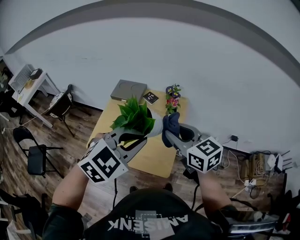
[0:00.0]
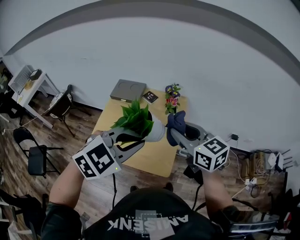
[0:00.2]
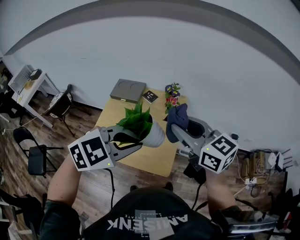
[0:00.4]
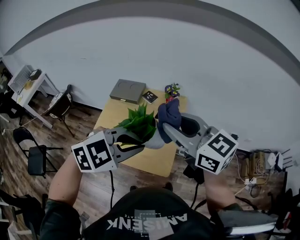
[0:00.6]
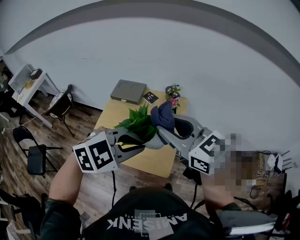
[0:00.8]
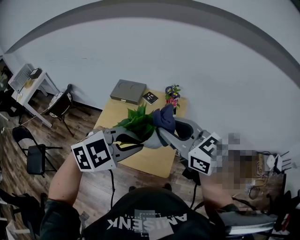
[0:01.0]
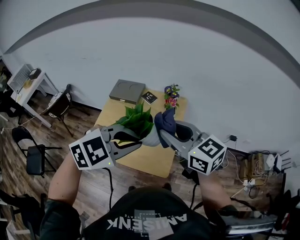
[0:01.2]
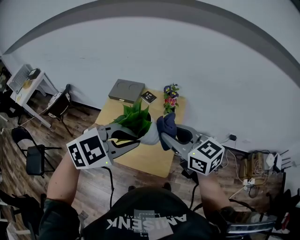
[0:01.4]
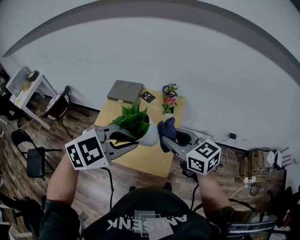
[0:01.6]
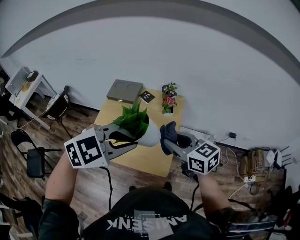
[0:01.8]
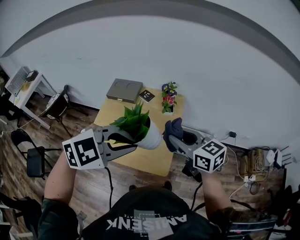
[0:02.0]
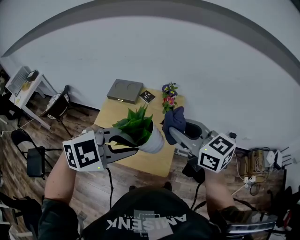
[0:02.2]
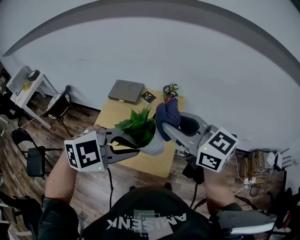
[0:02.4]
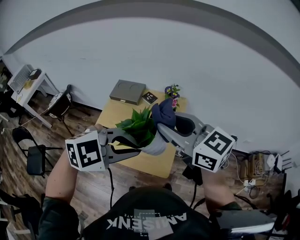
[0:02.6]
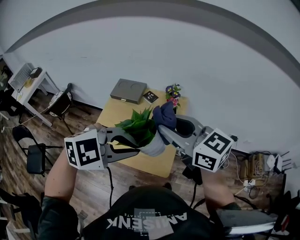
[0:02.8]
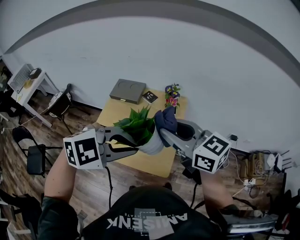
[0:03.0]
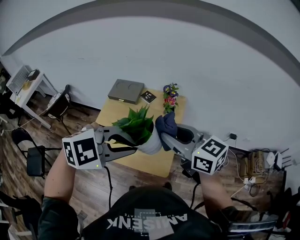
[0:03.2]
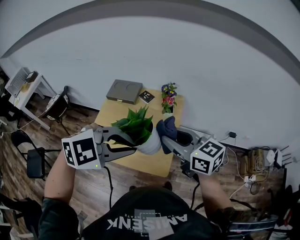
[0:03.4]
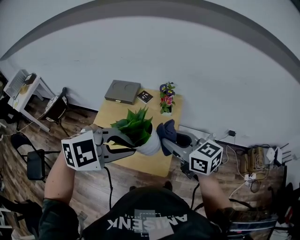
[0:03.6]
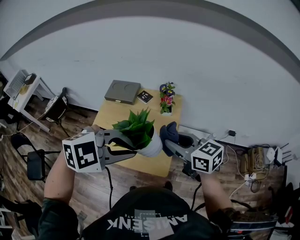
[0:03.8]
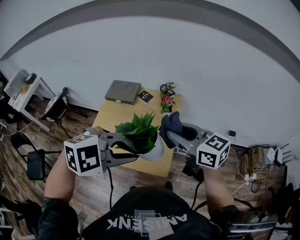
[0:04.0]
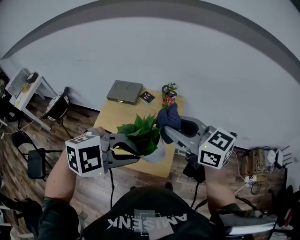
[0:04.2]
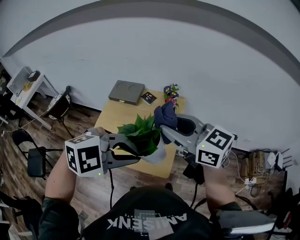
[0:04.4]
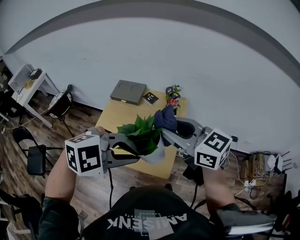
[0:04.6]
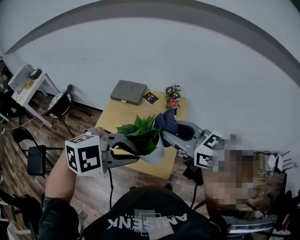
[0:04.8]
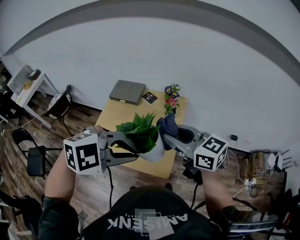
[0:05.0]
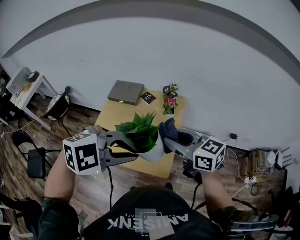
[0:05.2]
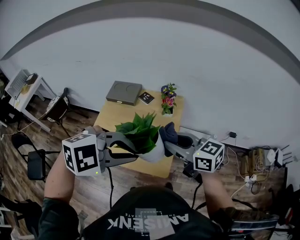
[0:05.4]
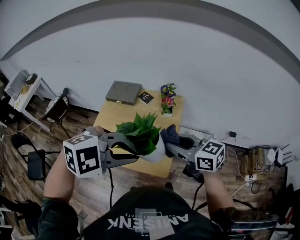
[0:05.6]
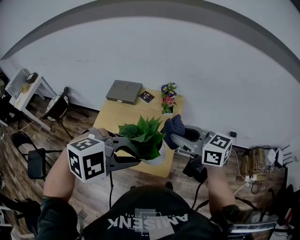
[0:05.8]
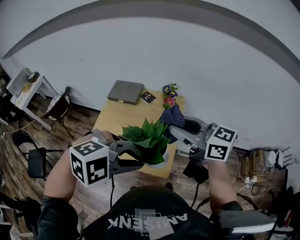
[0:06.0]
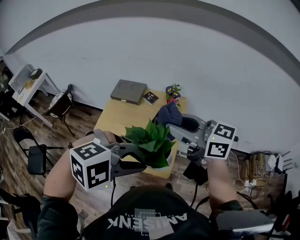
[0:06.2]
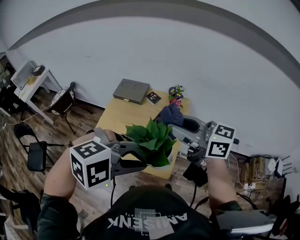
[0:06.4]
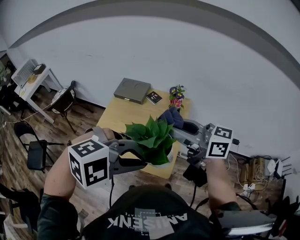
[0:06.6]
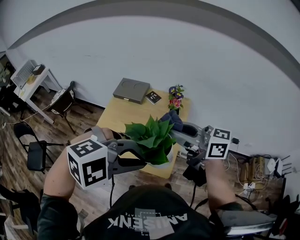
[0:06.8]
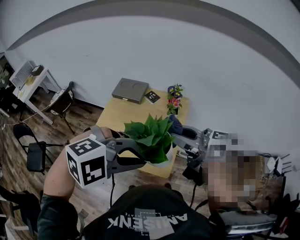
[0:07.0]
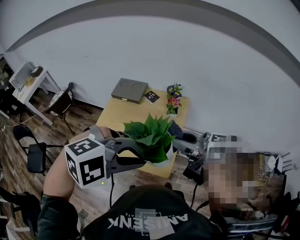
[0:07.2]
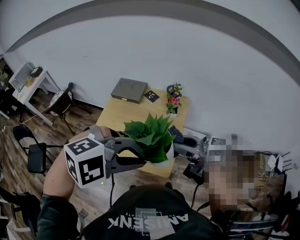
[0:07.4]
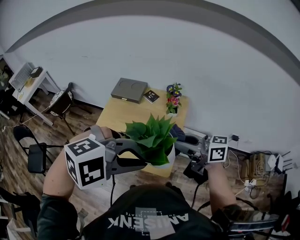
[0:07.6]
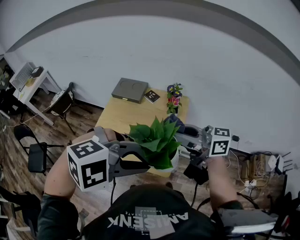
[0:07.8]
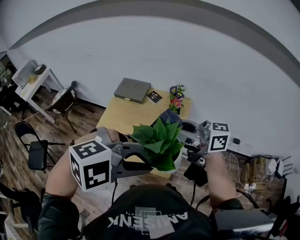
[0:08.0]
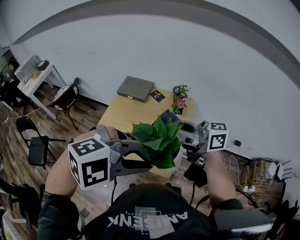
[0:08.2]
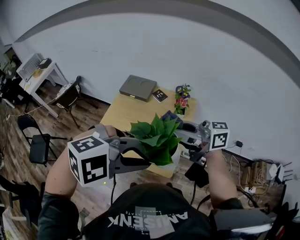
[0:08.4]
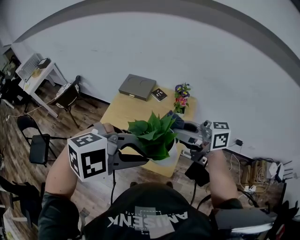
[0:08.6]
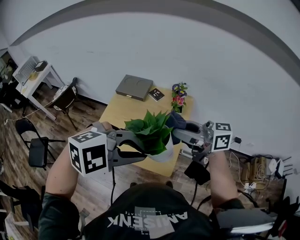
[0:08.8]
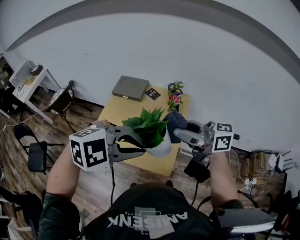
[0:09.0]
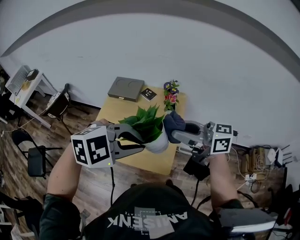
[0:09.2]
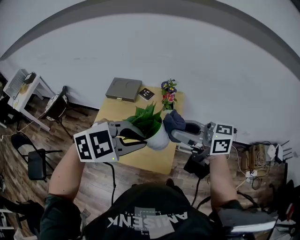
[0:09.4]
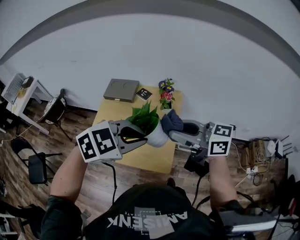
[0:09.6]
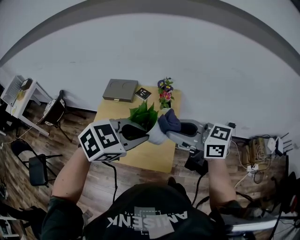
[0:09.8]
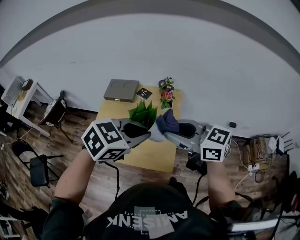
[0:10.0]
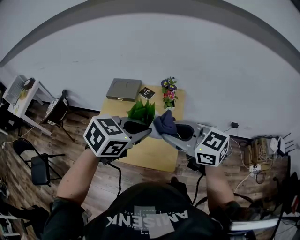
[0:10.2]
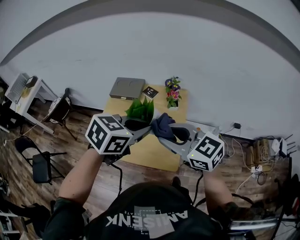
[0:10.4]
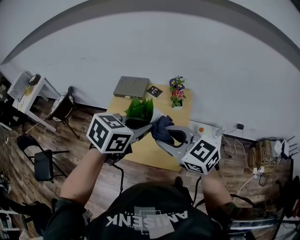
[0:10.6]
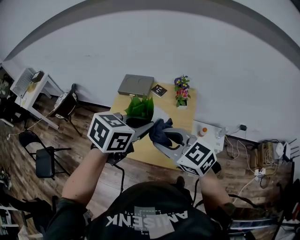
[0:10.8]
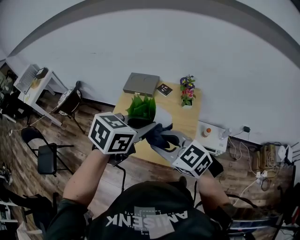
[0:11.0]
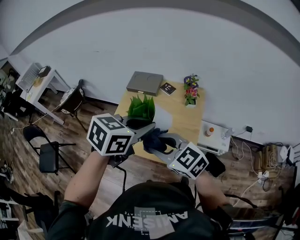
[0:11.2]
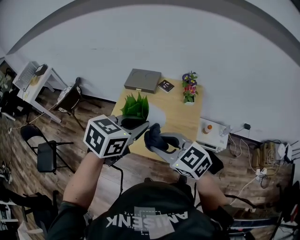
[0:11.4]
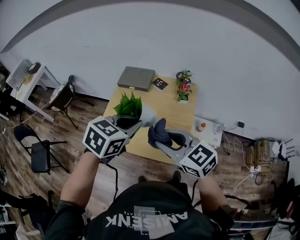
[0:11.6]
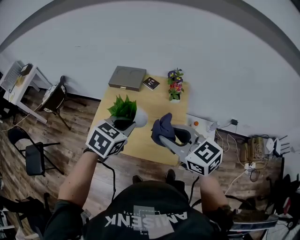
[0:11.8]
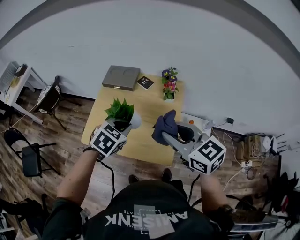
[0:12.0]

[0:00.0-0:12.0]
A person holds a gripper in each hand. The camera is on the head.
0:00.0 to 0:01.6: The right gripper moves roughly 10 cm upward and comes back.
0:01.6 to 0:03.0: The right gripper moves upward, roughly 10 cm.
0:03.0 to 0:04.4: The right gripper goes downward and returns, roughly 10 cm each way.
0:04.4 to 0:06.0: The right gripper reaches roughly 10 cm downward, then returns.
0:06.0 to 0:07.6: The right gripper is displaced downward by roughly 10 cm, and rotates roughly 20 degrees.
0:07.6 to 0:09.0: The right gripper moves upward, some 5 cm.
0:09.0 to 0:10.4: The right gripper ends up some 5 cm from where it was, and turns by roughly 40 degrees. Meanwhile the left gripper changes place by approximately 10 cm, and rolls counterclockwise, seen from behind, by approximately 50 degrees.
0:10.4 to 0:12.0: The left gripper heads downward and to the left, covering some 15 cm, and turns by about 20 degrees. Meanwhile the right gripper reaches about 10 cm to the left, then returns.

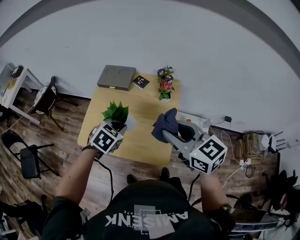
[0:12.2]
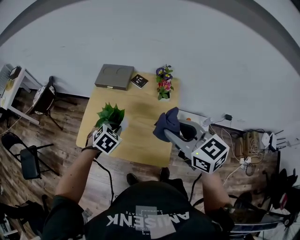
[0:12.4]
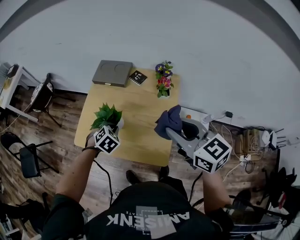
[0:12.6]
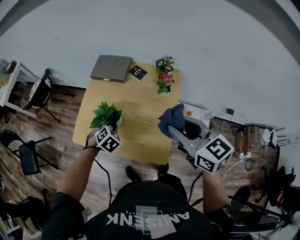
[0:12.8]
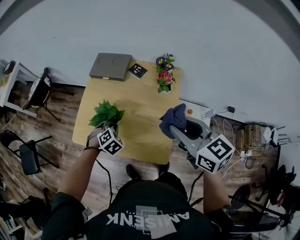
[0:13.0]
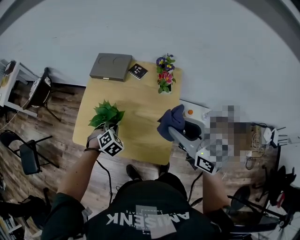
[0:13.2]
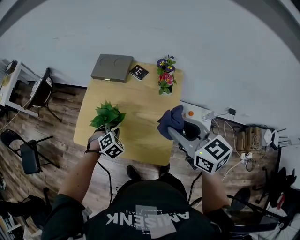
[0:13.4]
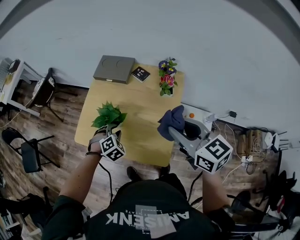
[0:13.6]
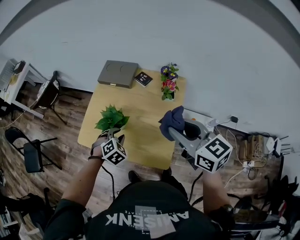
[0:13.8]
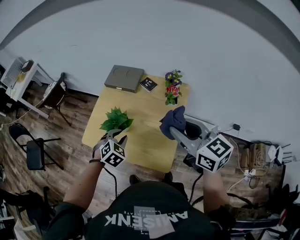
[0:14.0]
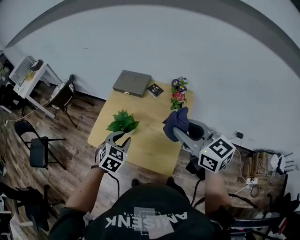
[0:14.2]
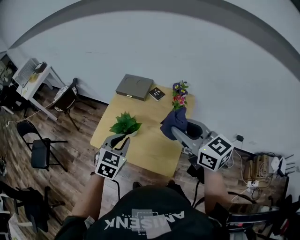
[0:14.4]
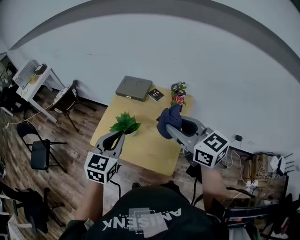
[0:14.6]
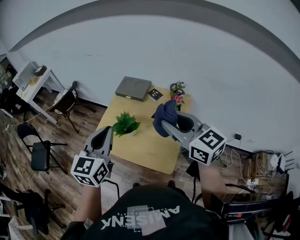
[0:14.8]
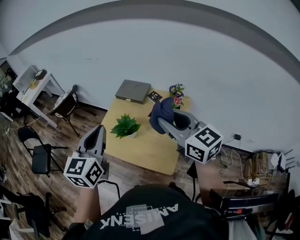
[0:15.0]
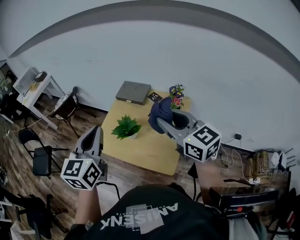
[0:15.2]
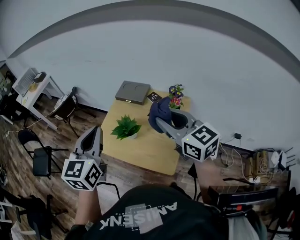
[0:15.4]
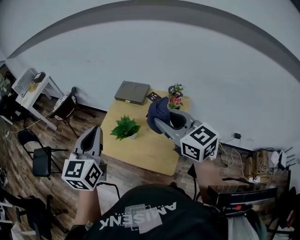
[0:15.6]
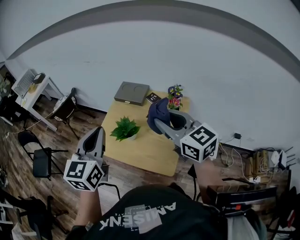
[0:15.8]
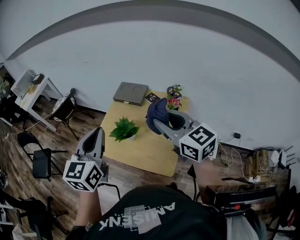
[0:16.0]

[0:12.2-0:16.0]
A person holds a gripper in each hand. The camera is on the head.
0:12.2 to 0:13.4: The right gripper ends up about 10 cm from where it was. The left gripper is displaced downward by some 15 cm, and turns by roughly 30 degrees.
0:13.4 to 0:14.8: The left gripper is displaced upward by approximately 35 cm, and angles its fingers upward, by roughly 50 degrees. Meanwhile the right gripper is displaced upward and to the left by about 15 cm.
0:14.8 to 0:16.0: The grippers stay close to where they were, moving slightly.

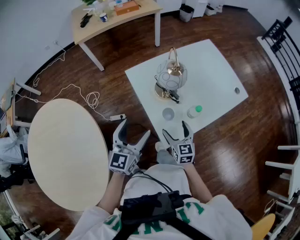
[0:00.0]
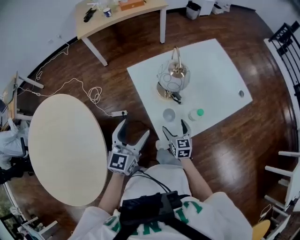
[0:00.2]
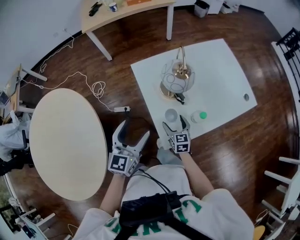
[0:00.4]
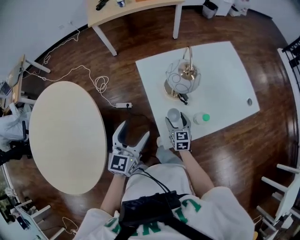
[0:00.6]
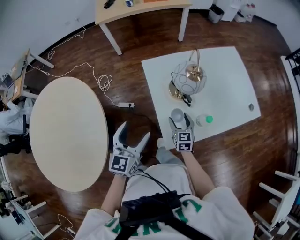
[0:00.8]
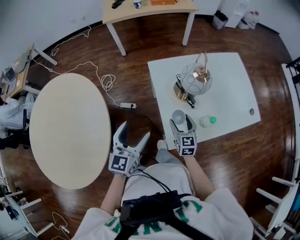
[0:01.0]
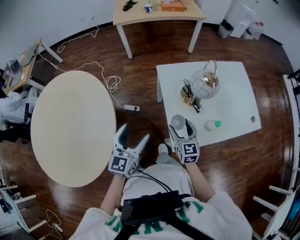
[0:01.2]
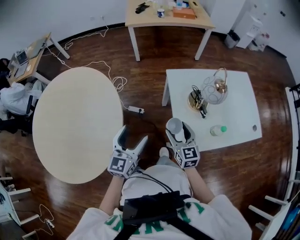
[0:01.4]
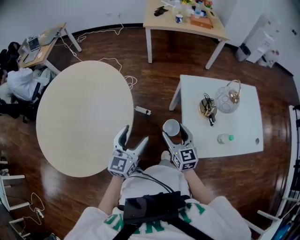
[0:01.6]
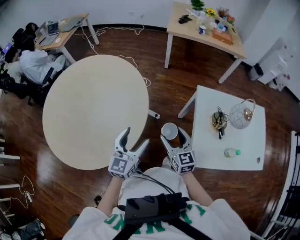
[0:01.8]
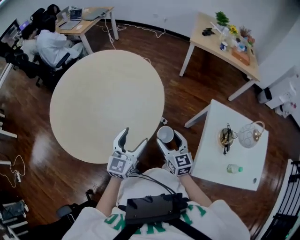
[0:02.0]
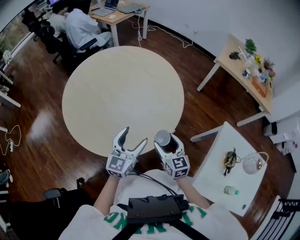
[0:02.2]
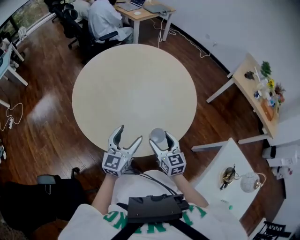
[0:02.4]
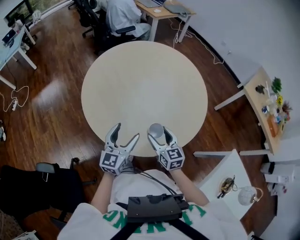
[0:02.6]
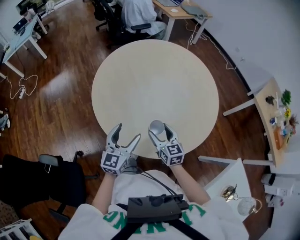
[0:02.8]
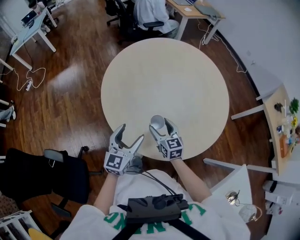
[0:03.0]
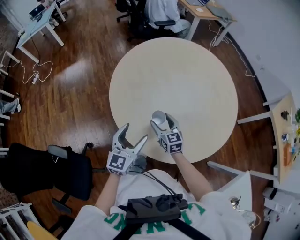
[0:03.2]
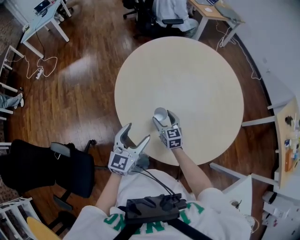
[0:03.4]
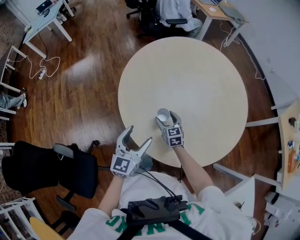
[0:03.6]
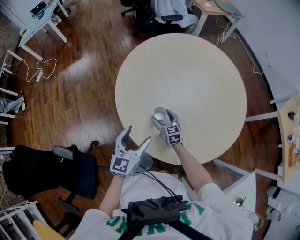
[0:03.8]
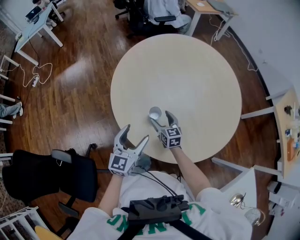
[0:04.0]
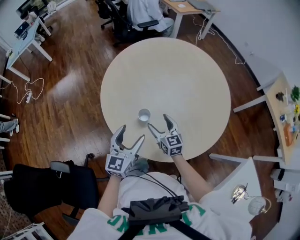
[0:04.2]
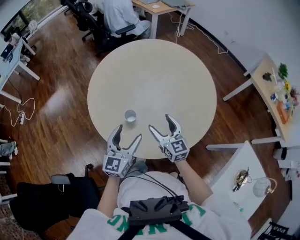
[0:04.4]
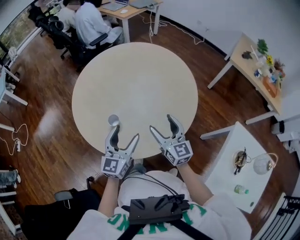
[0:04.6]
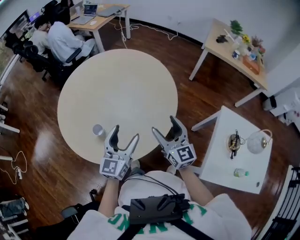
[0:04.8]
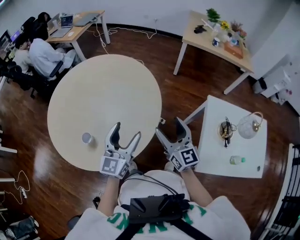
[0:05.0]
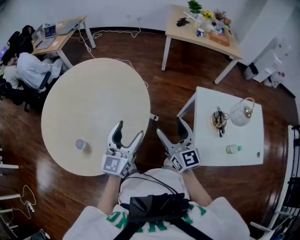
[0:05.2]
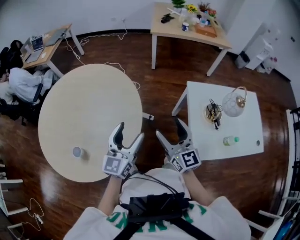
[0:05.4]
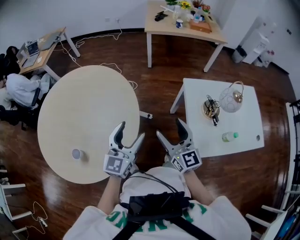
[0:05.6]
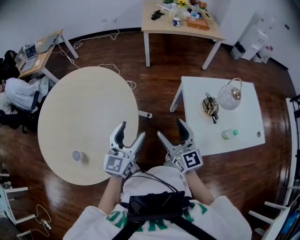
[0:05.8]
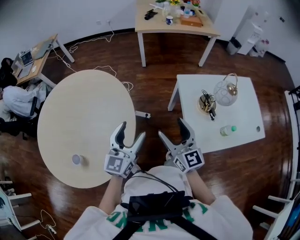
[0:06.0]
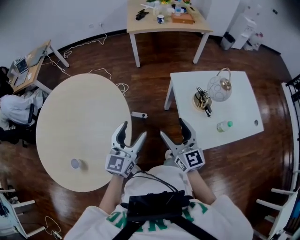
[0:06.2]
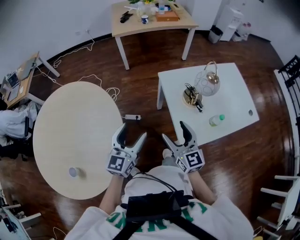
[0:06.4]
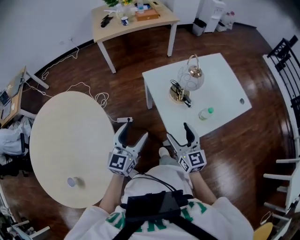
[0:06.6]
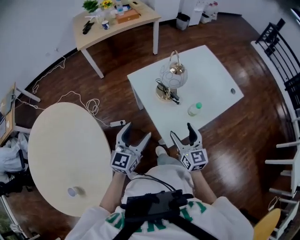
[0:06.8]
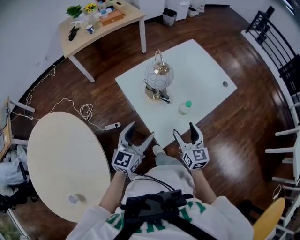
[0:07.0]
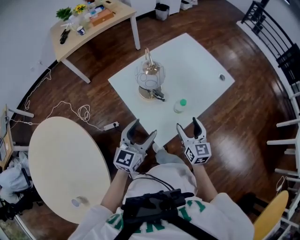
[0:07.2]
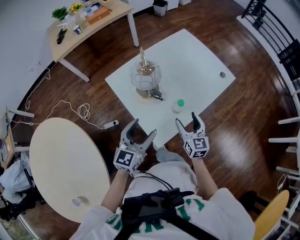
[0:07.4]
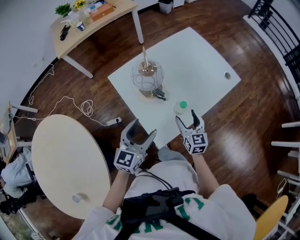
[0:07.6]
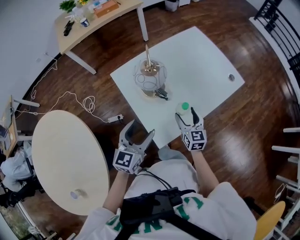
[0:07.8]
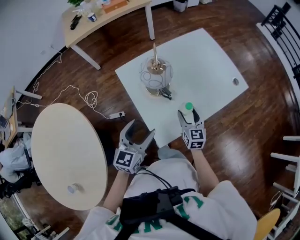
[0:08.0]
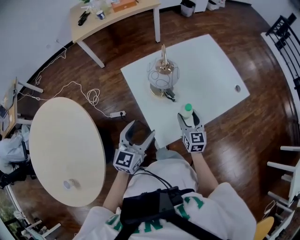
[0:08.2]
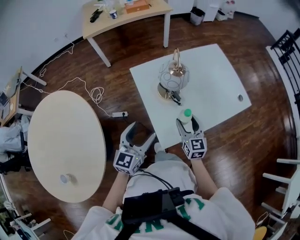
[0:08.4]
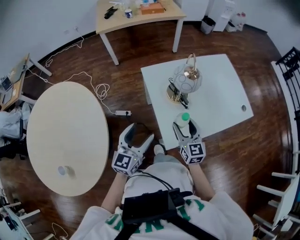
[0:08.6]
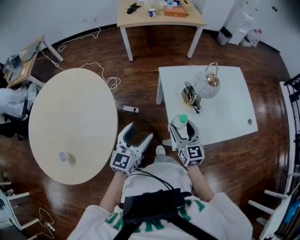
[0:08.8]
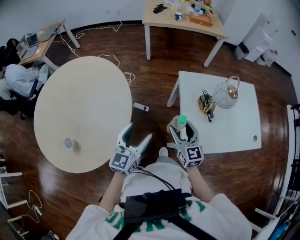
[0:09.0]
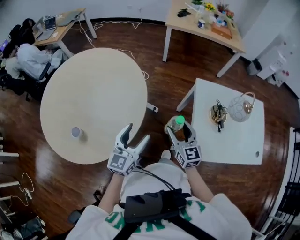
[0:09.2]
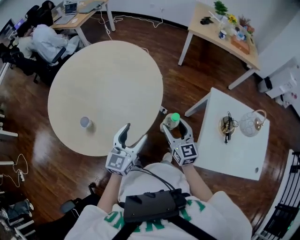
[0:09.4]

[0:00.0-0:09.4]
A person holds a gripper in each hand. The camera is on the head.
0:00.0 to 0:01.6: The right gripper ends up roughly 20 cm from where it was, and changes its angle by roughly 30 degrees, while the left gripper shifts by some 20 cm, and changes its angle by approximately 30 degrees.
0:01.6 to 0:03.2: Both grippers are carried about 50 cm. The left gripper turns by approximately 60 degrees. Meanwhile the right gripper swivels about 70 degrees.
0:03.2 to 0:04.8: The right gripper changes place by some 35 cm, and rotates some 50 degrees. Meanwhile the left gripper moves roughly 20 cm, and turns by about 30 degrees.
0:04.8 to 0:06.2: The right gripper changes place by roughly 30 cm, and turns by about 30 degrees; the left gripper shifts by approximately 30 cm, and changes its angle by about 40 degrees.
0:06.2 to 0:07.8: The left gripper changes place by about 30 cm, and rotates roughly 30 degrees. The right gripper shifts by roughly 40 cm, and turns by about 40 degrees.
0:07.8 to 0:09.4: The pair of grippers is taken approximately 50 cm. The right gripper changes its angle by some 60 degrees; the left gripper changes its angle by approximately 60 degrees.
